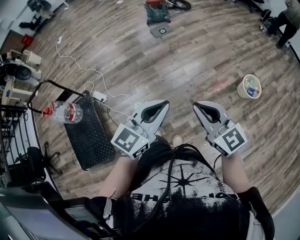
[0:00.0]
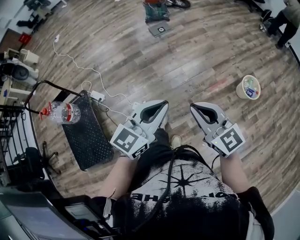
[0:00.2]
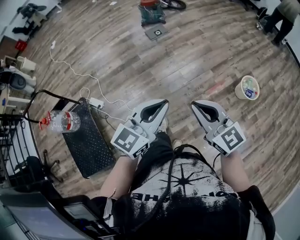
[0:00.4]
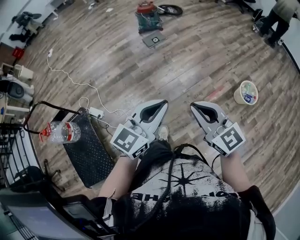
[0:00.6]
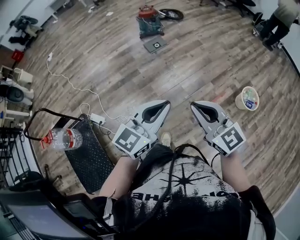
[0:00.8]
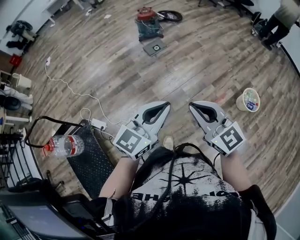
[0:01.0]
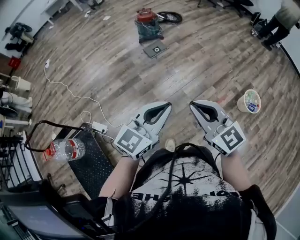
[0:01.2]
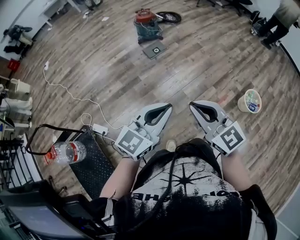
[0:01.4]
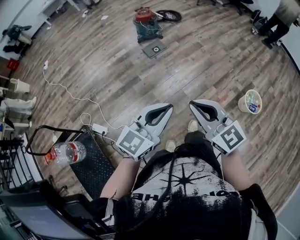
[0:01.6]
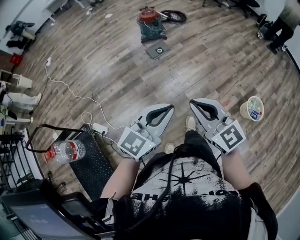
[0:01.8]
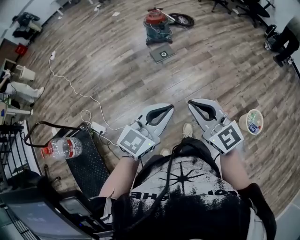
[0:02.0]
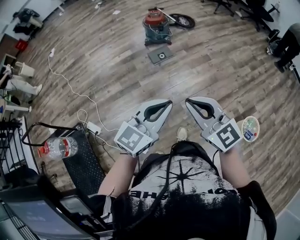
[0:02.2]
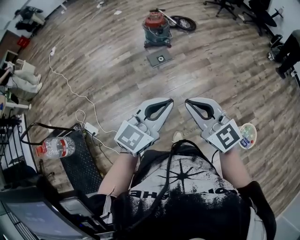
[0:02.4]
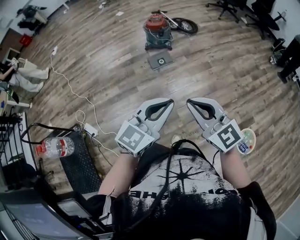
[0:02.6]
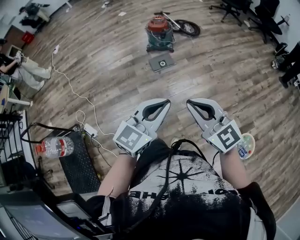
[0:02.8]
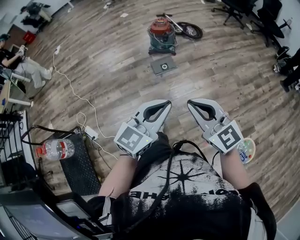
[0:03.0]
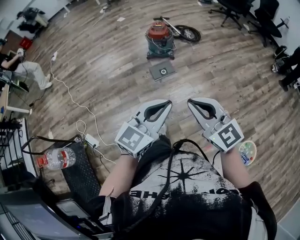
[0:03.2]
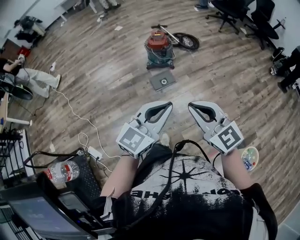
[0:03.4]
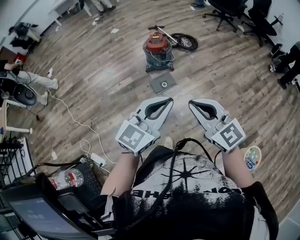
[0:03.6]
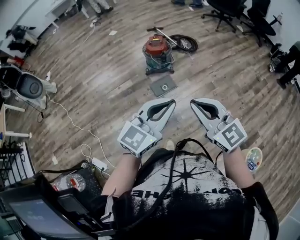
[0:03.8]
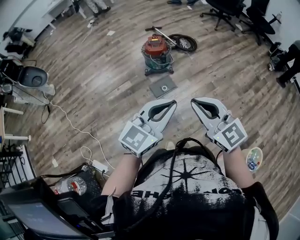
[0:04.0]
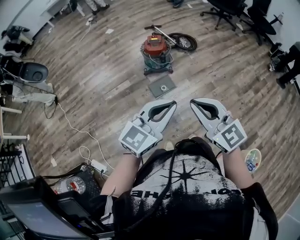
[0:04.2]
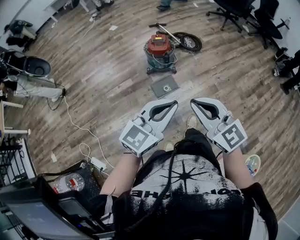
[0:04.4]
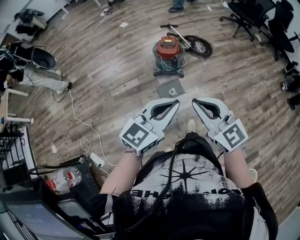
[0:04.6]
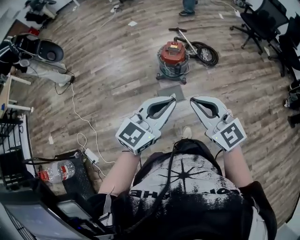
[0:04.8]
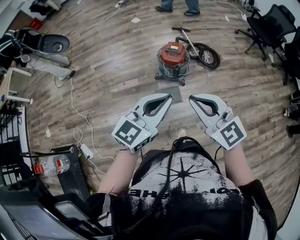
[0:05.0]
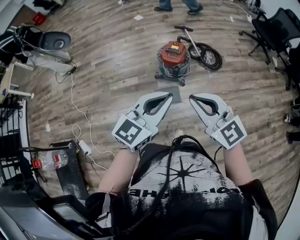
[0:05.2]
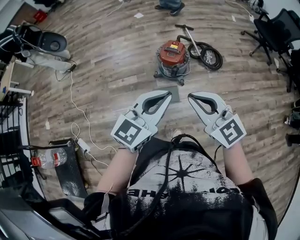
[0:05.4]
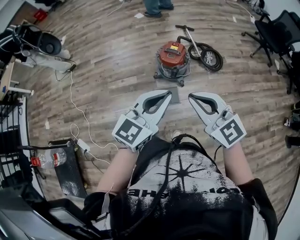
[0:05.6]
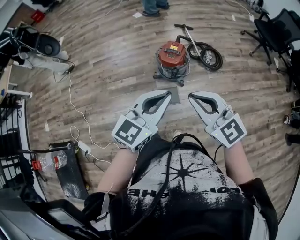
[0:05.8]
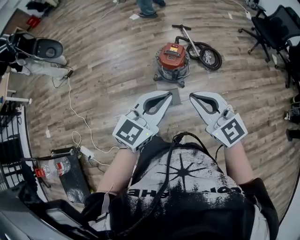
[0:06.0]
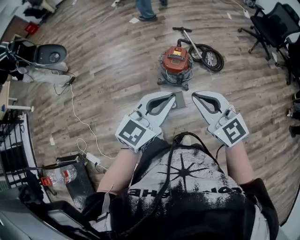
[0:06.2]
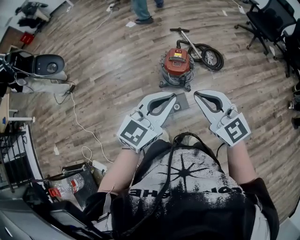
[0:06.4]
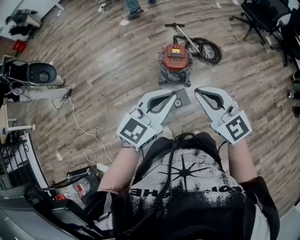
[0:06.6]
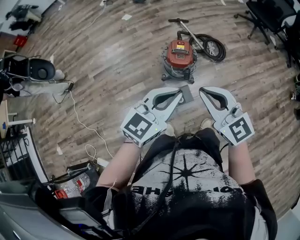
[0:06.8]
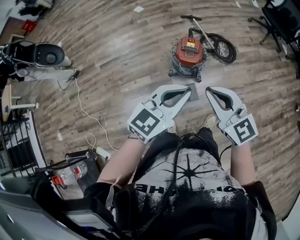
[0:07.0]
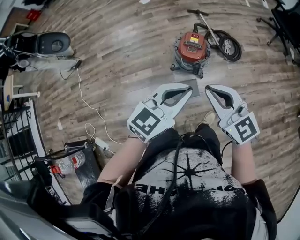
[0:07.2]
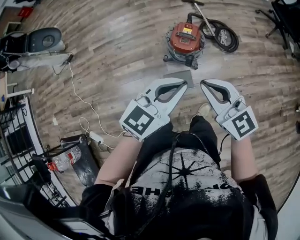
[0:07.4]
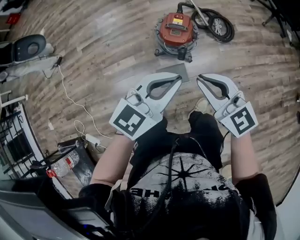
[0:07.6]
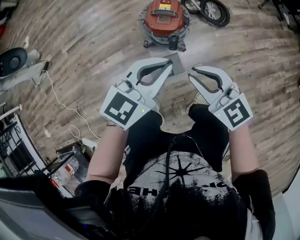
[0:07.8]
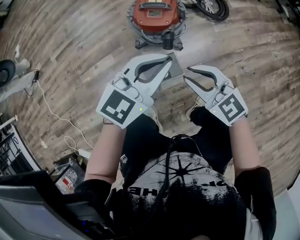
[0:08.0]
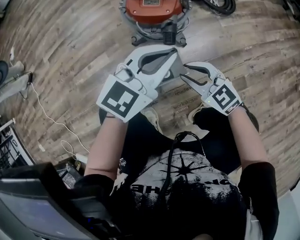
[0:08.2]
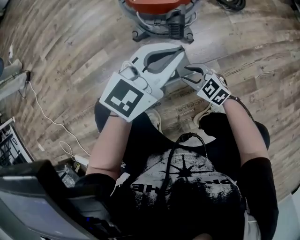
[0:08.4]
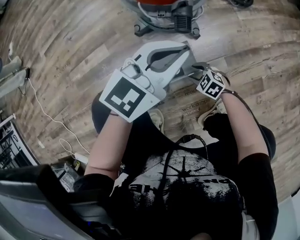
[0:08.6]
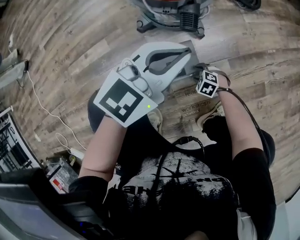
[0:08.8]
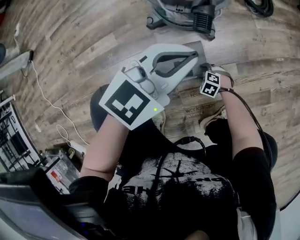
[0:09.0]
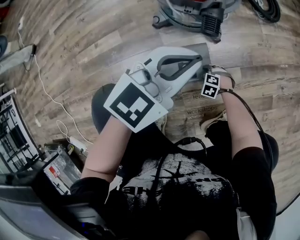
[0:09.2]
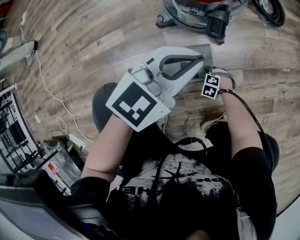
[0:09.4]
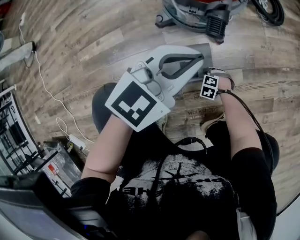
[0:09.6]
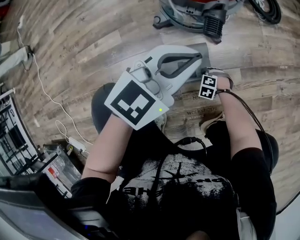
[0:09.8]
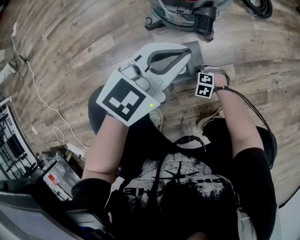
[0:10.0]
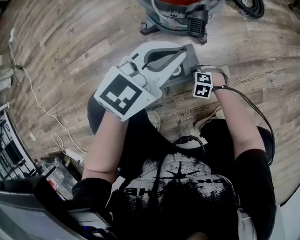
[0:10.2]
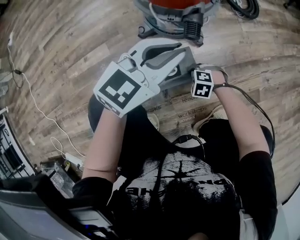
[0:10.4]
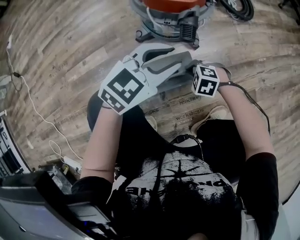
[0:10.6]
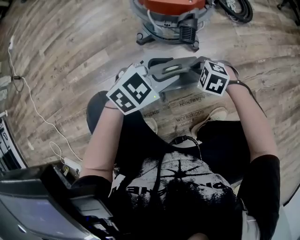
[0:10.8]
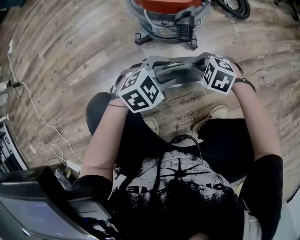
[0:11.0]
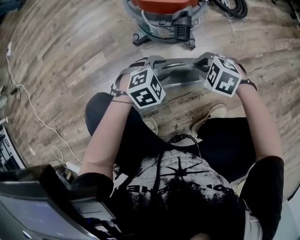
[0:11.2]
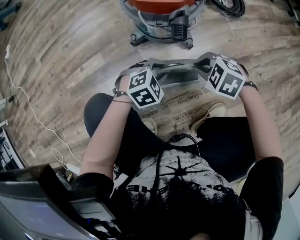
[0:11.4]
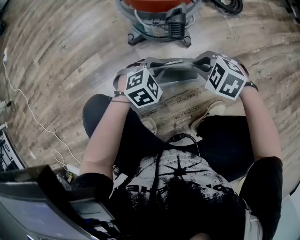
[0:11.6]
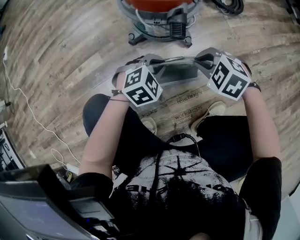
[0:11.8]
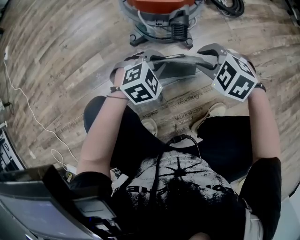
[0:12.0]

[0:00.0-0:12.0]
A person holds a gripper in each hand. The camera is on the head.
0:00.0 to 0:01.6: The left gripper moves forward, some 25 cm; the right gripper shifts about 30 cm forward and to the left.
0:01.6 to 0:03.0: Both grippers move forward and to the right, roughly 30 cm.
0:03.0 to 0:04.4: The grippers both shift forward by some 30 cm.
0:04.4 to 0:06.0: Both grippers move forward, about 25 cm.
0:06.0 to 0:07.6: The right gripper shifts about 20 cm downward and forward, while the left gripper is displaced forward and downward by some 15 cm.
0:07.6 to 0:09.0: The right gripper travels downward by approximately 90 cm, angles its fingers downward, by approximately 60 degrees, and opens its fingers. Meanwhile the left gripper travels downward by some 50 cm.
0:09.0 to 0:10.4: The right gripper heads upward, covering some 10 cm, and closes.
0:10.4 to 0:12.0: The right gripper goes roughly 20 cm upward, and opens its fingers. Meanwhile the left gripper goes approximately 15 cm downward, angles its fingers downward, by about 40 degrees, and opens, then closes again.

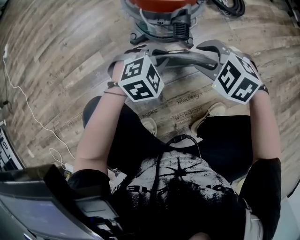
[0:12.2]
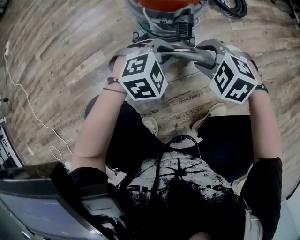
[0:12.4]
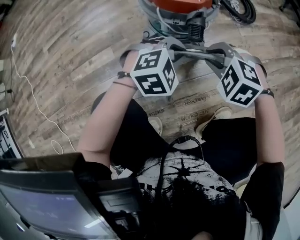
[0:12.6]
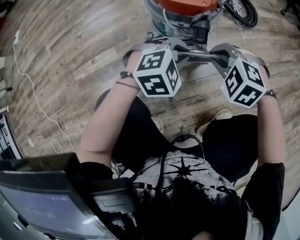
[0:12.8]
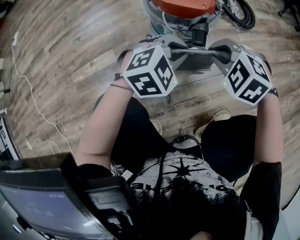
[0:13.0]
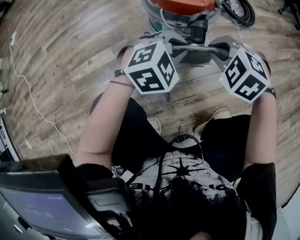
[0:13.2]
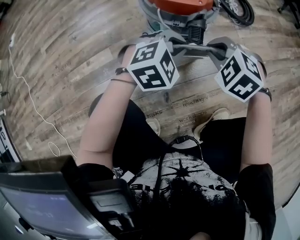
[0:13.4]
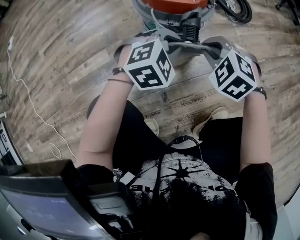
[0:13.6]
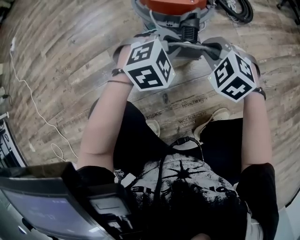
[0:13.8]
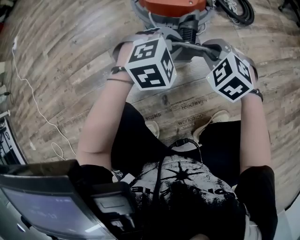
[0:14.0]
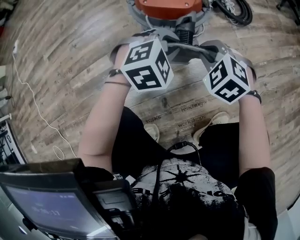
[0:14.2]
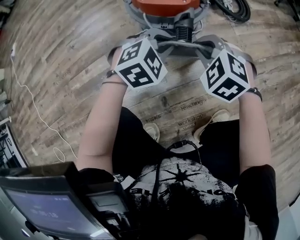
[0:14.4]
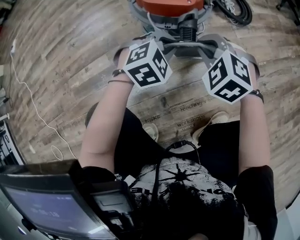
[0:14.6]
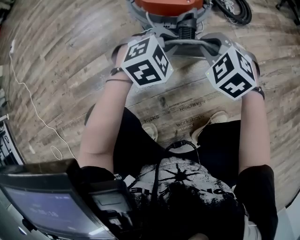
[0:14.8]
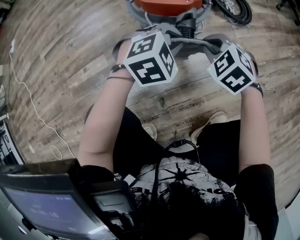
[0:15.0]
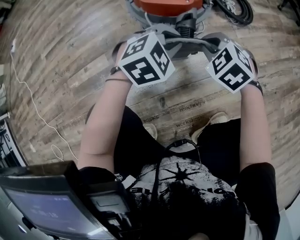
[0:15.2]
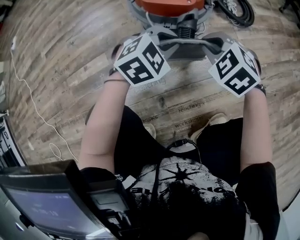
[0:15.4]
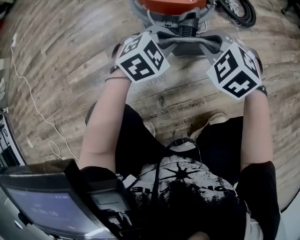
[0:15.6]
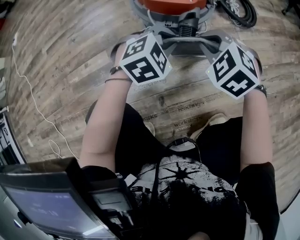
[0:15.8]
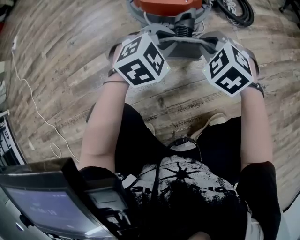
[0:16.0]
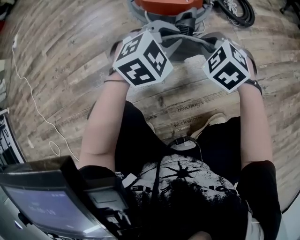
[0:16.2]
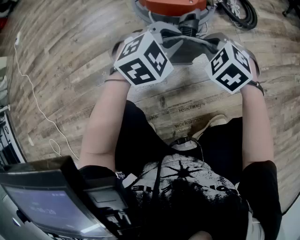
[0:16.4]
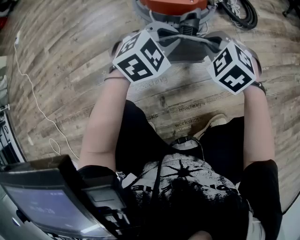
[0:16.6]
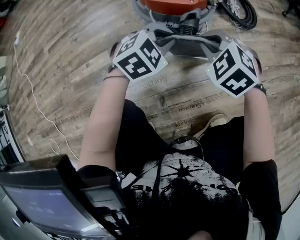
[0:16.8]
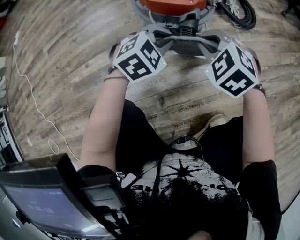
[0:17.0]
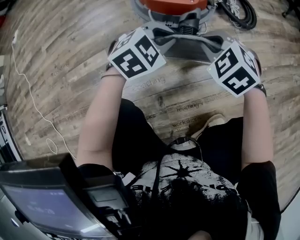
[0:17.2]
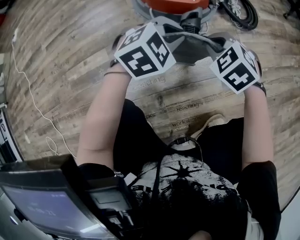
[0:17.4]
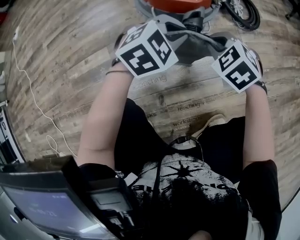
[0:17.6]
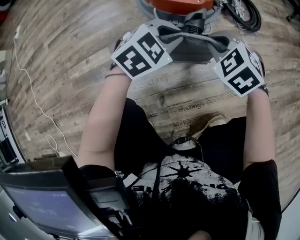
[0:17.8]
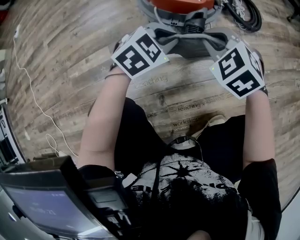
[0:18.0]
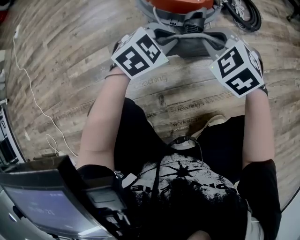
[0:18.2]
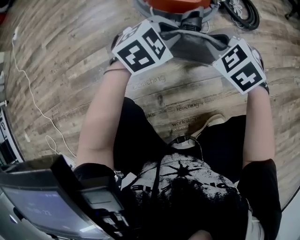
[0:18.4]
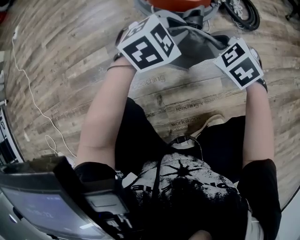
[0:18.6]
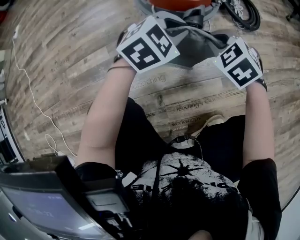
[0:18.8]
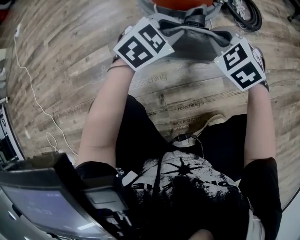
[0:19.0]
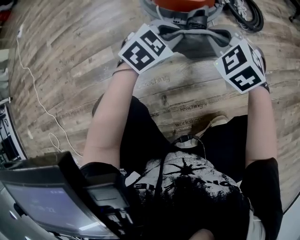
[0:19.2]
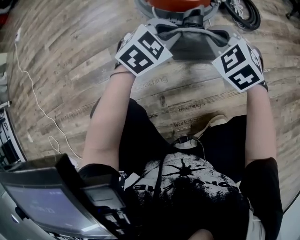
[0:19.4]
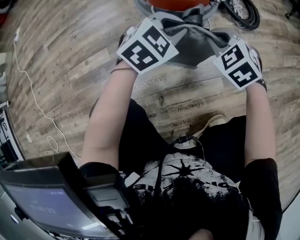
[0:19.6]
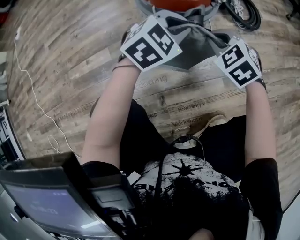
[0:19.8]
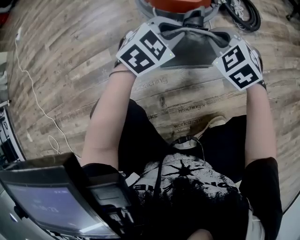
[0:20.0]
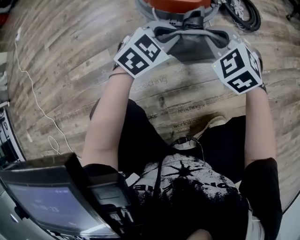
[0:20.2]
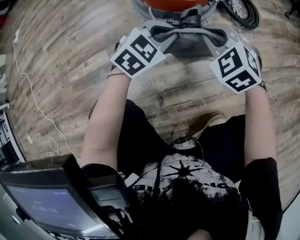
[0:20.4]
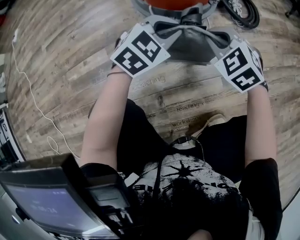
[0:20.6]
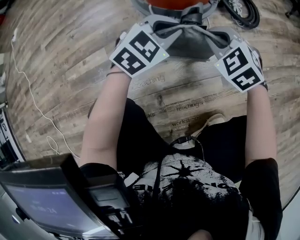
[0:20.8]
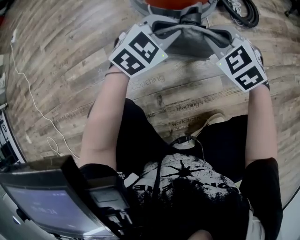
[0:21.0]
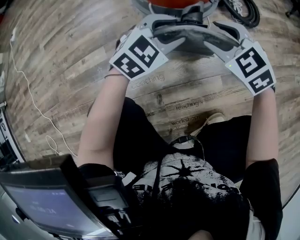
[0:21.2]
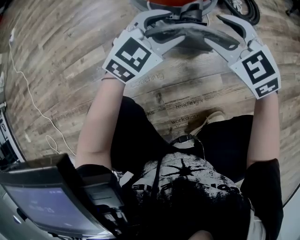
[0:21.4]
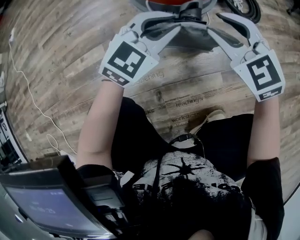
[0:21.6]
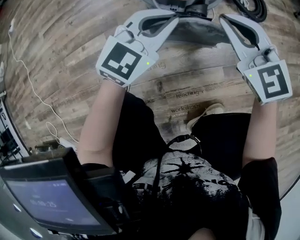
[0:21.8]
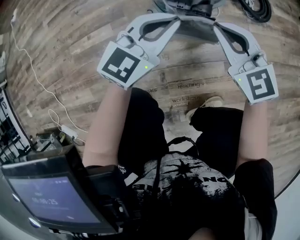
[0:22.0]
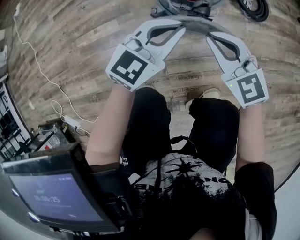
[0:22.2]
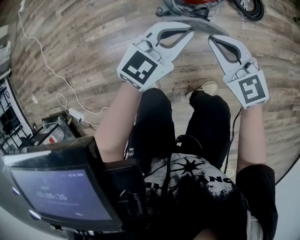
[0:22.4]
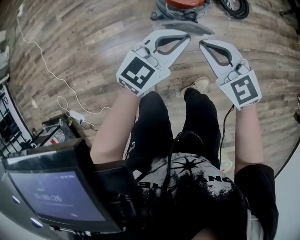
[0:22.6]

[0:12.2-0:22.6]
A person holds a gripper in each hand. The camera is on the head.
0:12.2 to 0:13.6: The left gripper moves some 5 cm, while the right gripper closes up.
0:13.6 to 0:18.2: The grippers move only a little.
0:18.2 to 0:19.6: The left gripper changes place by some 5 cm.
0:19.6 to 0:21.2: The left gripper opens up, while the right gripper opens its fingers.
0:21.2 to 0:22.6: Both grippers travel together upward, approximately 30 cm. The right gripper swivels approximately 20 degrees, and closes its fingers. The left gripper swivels roughly 30 degrees, and closes its fingers.

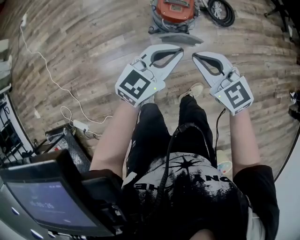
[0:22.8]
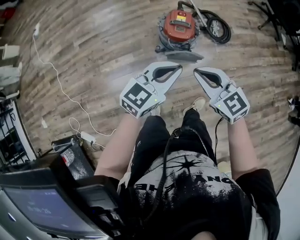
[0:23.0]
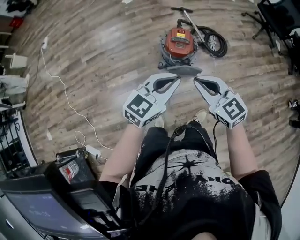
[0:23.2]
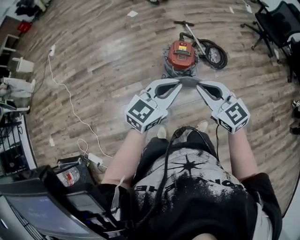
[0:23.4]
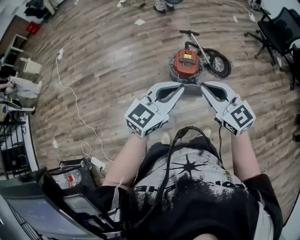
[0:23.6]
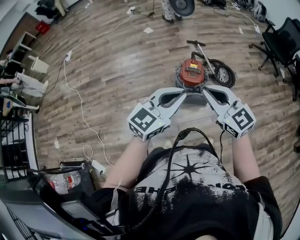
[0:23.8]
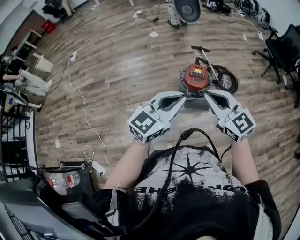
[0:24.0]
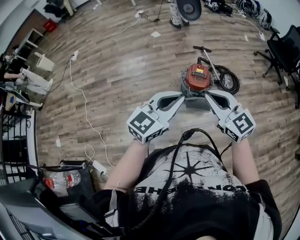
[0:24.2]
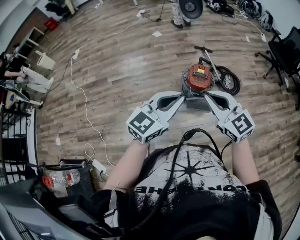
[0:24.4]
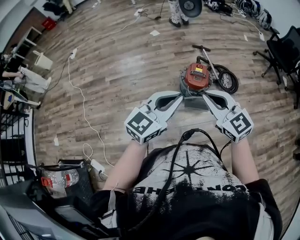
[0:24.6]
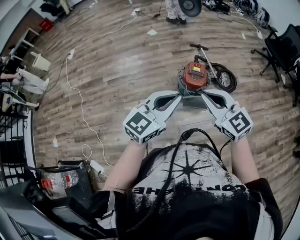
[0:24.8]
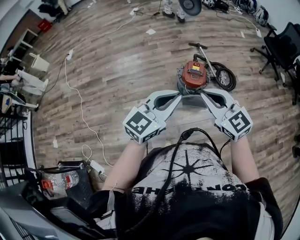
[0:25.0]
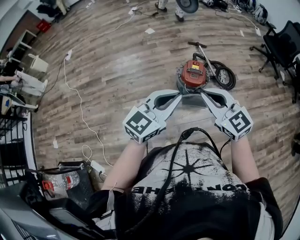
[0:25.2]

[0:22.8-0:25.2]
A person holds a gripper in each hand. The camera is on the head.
0:22.8 to 0:24.0: The right gripper moves upward, roughly 20 cm, while the left gripper heads upward, backward and to the left, covering about 25 cm.
0:24.0 to 0:25.2: The grippers stay close to where they were, moving slightly.
